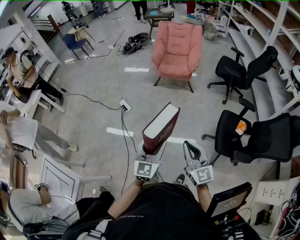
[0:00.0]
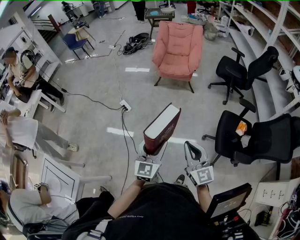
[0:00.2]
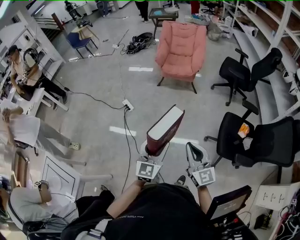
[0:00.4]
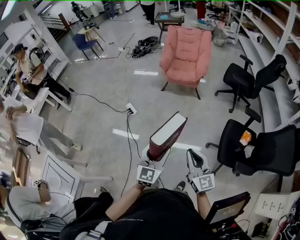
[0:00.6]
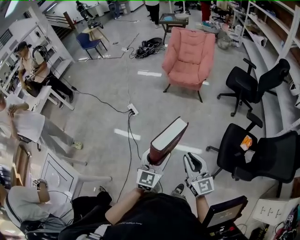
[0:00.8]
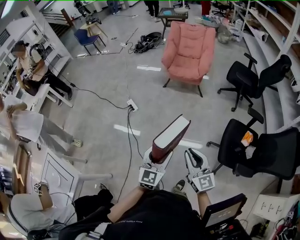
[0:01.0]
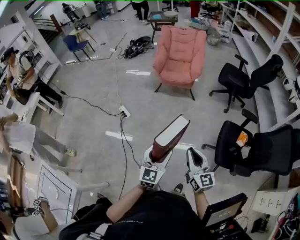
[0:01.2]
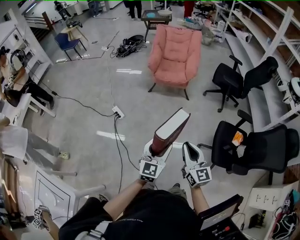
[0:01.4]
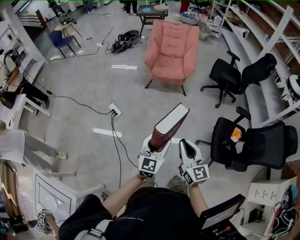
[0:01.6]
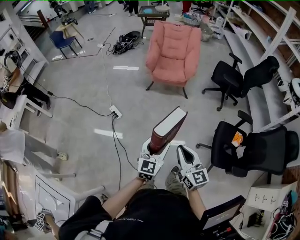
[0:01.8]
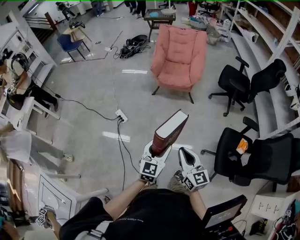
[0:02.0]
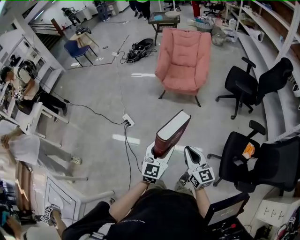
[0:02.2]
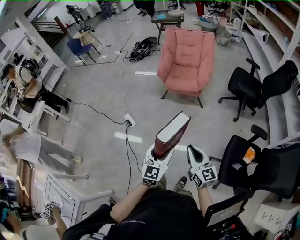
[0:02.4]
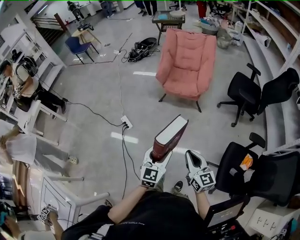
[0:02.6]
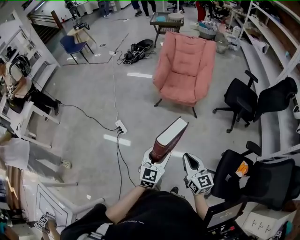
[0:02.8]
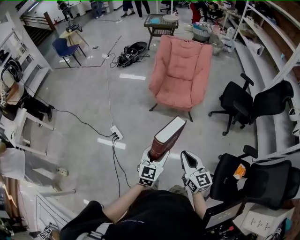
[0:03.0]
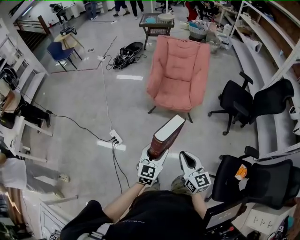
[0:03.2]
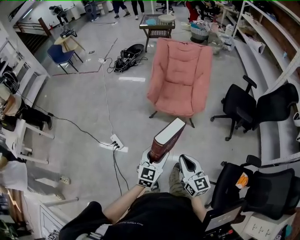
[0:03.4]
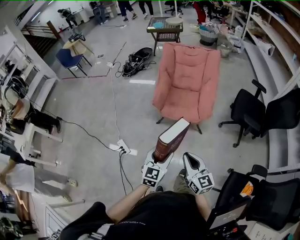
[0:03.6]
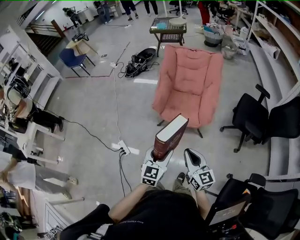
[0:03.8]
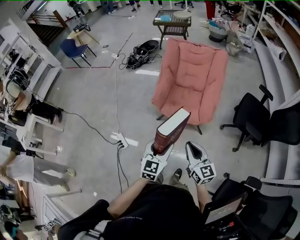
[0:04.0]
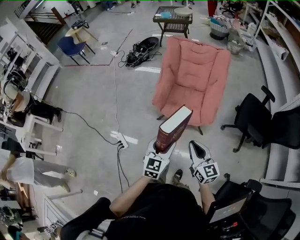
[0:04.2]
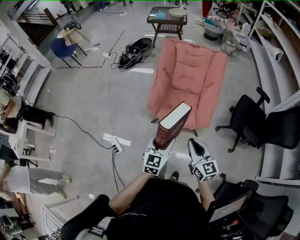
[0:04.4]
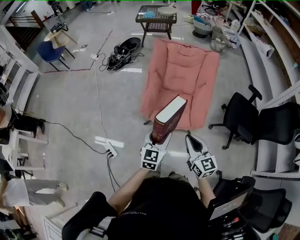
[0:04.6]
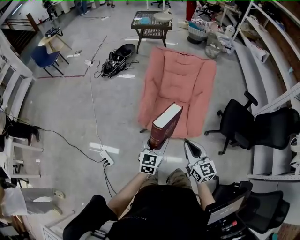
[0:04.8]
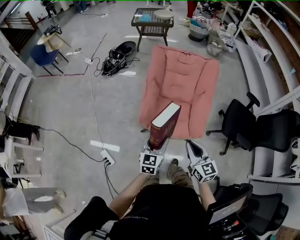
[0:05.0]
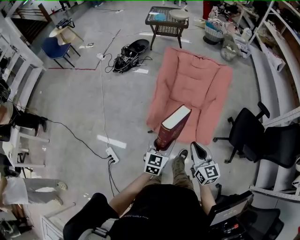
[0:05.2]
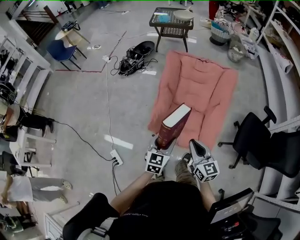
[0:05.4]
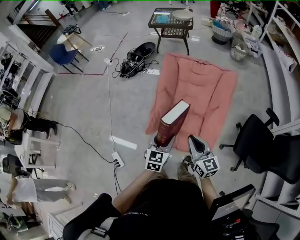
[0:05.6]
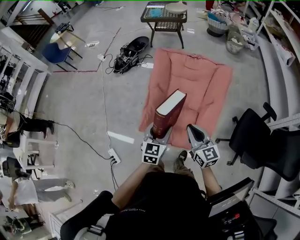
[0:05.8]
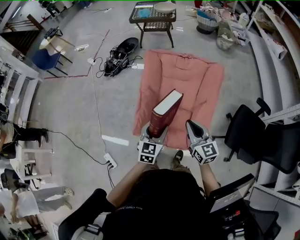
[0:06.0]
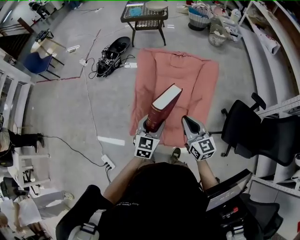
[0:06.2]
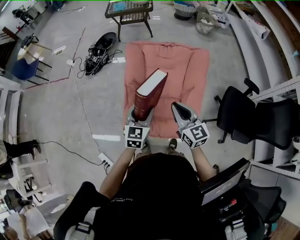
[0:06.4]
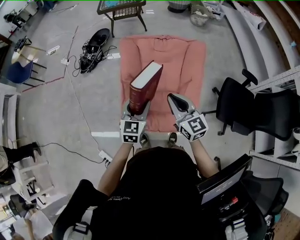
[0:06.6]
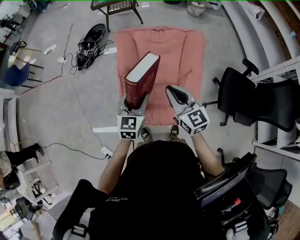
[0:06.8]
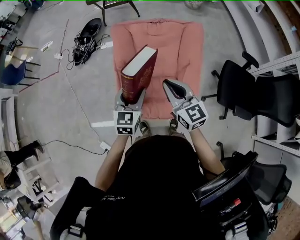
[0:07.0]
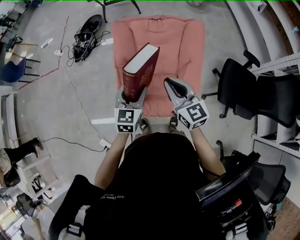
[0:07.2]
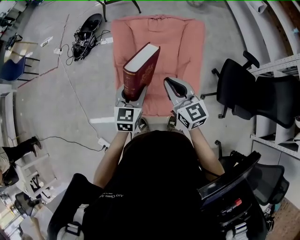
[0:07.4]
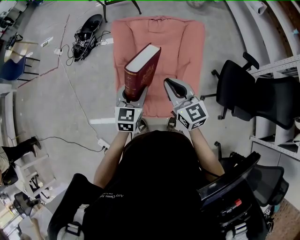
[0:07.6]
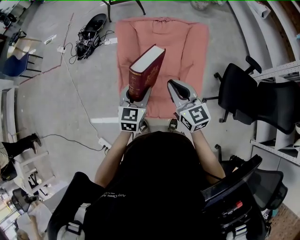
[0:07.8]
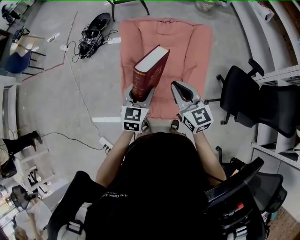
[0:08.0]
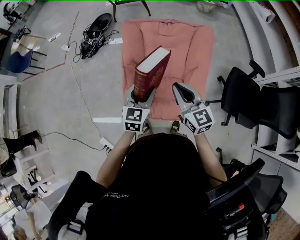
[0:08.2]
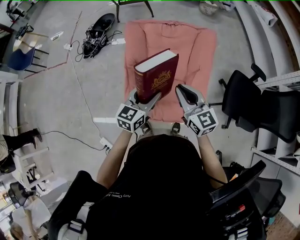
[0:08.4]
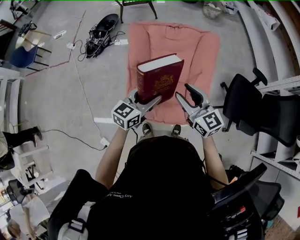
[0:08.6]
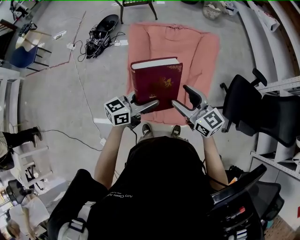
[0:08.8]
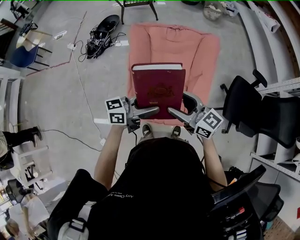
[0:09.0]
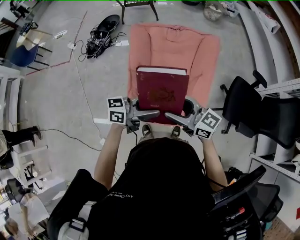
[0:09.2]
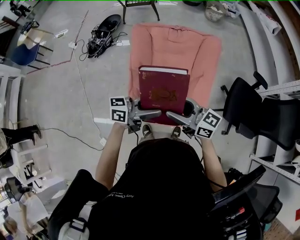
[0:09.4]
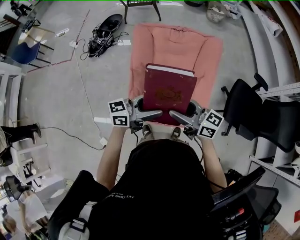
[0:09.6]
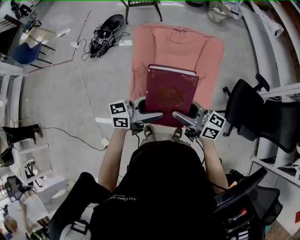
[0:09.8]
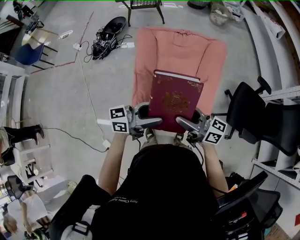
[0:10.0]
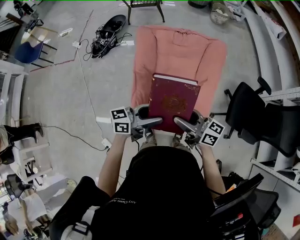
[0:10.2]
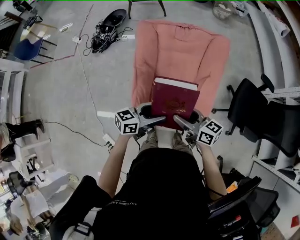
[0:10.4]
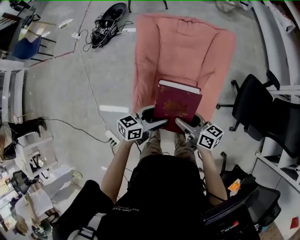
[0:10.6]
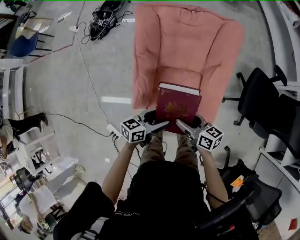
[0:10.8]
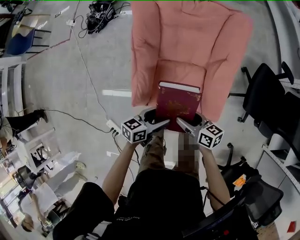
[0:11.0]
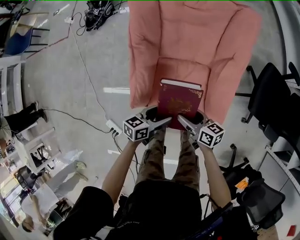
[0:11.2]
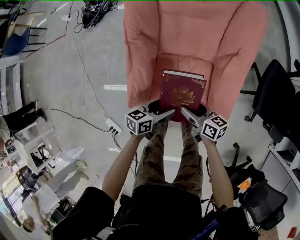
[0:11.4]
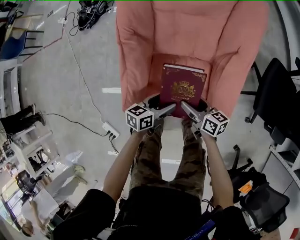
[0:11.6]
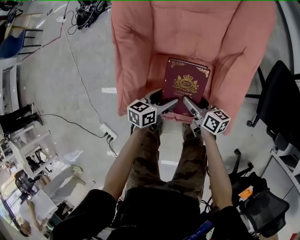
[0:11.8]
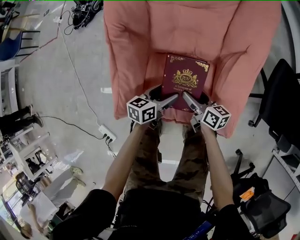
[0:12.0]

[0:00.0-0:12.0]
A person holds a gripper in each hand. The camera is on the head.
0:00.0 to 0:01.6: The two grippers go some 15 cm forward.
0:01.6 to 0:03.0: Both grippers travel together forward, roughly 30 cm.
0:03.0 to 0:04.4: The two grippers go some 40 cm forward.
0:04.4 to 0:06.0: The grippers both shift forward by roughly 35 cm.
0:06.0 to 0:07.6: Both grippers move forward, about 5 cm.
0:07.6 to 0:09.0: The right gripper moves roughly 5 cm, swivels some 30 degrees, and opens up. Meanwhile the left gripper is displaced backward and upward by roughly 10 cm, and turns by roughly 60 degrees.
0:09.0 to 0:10.4: The grippers both shift downward by about 10 cm. The right gripper changes its angle by about 20 degrees.
0:10.4 to 0:12.0: Both grippers travel together downward, roughly 40 cm. The right gripper swivels some 20 degrees. The left gripper changes its angle by about 20 degrees.

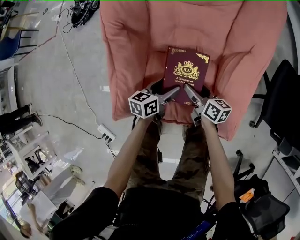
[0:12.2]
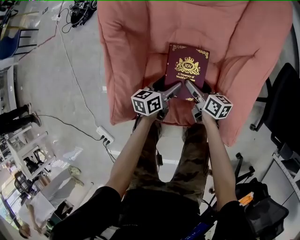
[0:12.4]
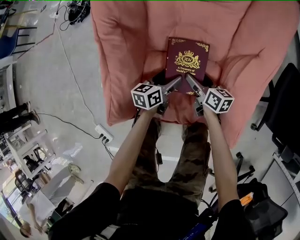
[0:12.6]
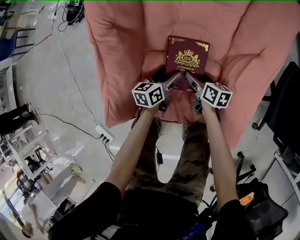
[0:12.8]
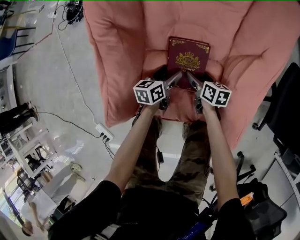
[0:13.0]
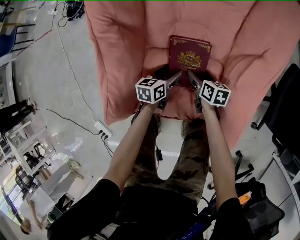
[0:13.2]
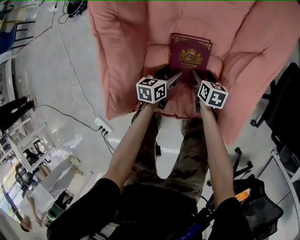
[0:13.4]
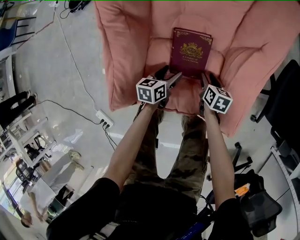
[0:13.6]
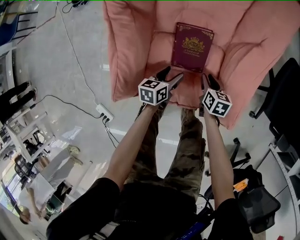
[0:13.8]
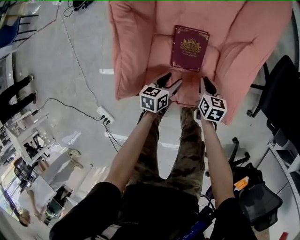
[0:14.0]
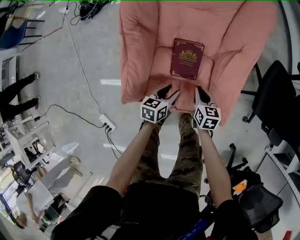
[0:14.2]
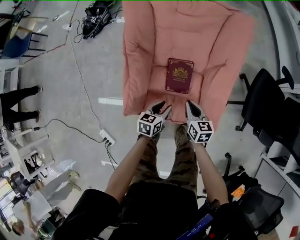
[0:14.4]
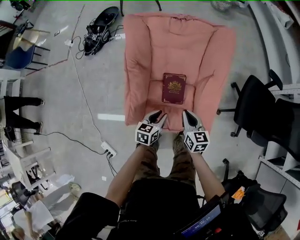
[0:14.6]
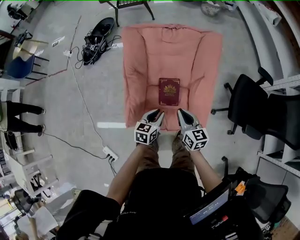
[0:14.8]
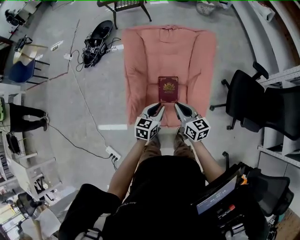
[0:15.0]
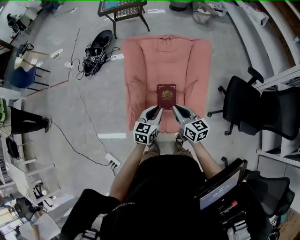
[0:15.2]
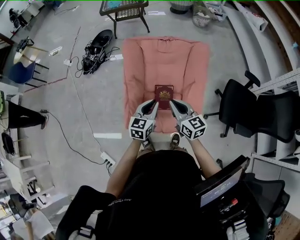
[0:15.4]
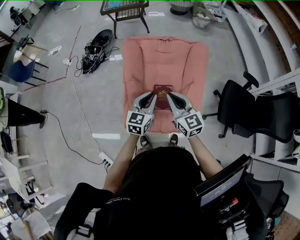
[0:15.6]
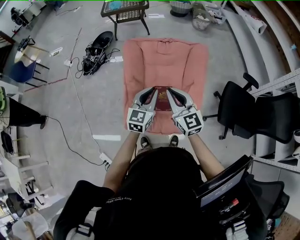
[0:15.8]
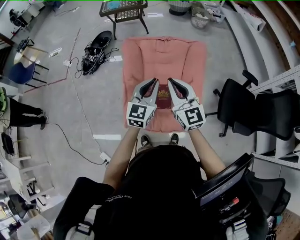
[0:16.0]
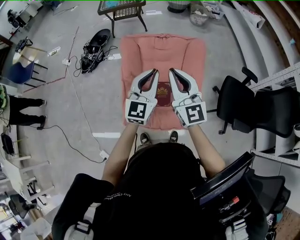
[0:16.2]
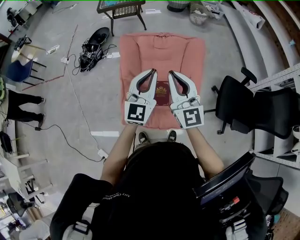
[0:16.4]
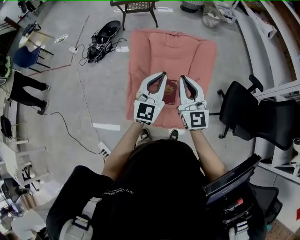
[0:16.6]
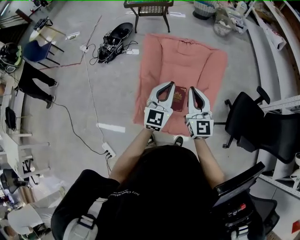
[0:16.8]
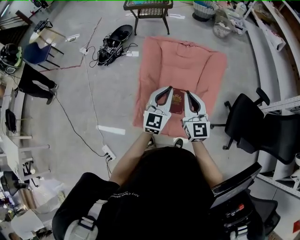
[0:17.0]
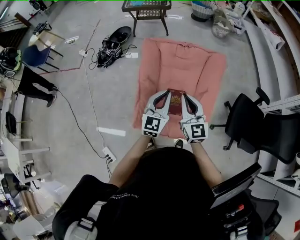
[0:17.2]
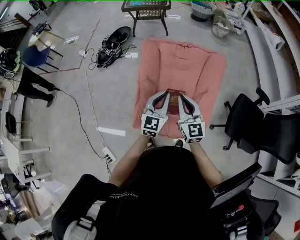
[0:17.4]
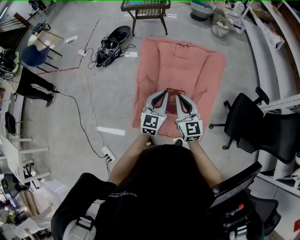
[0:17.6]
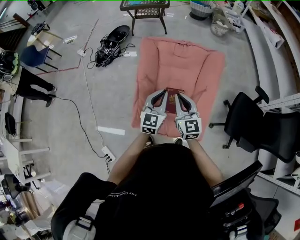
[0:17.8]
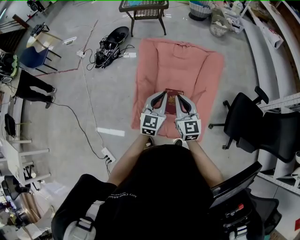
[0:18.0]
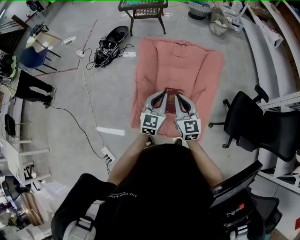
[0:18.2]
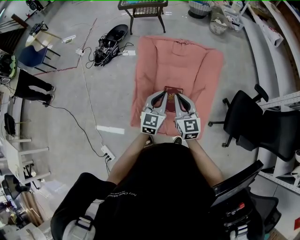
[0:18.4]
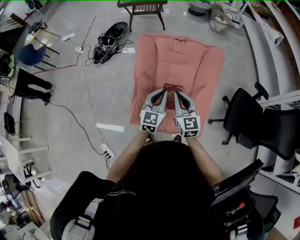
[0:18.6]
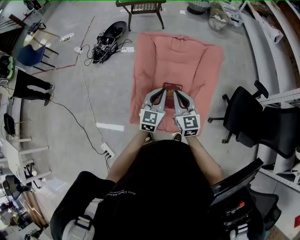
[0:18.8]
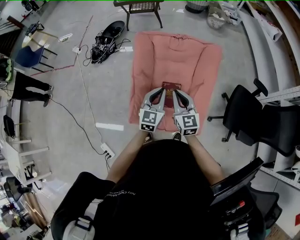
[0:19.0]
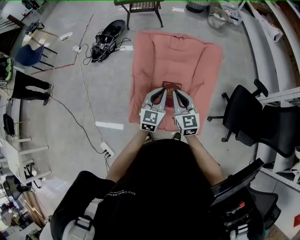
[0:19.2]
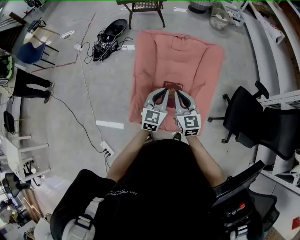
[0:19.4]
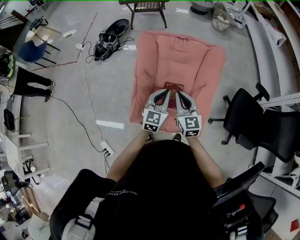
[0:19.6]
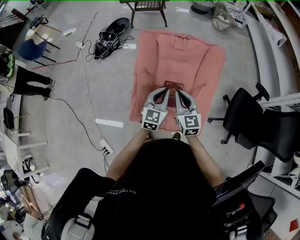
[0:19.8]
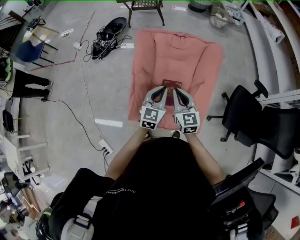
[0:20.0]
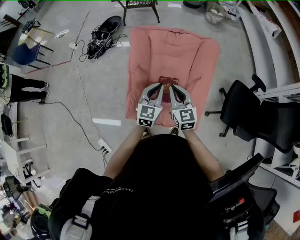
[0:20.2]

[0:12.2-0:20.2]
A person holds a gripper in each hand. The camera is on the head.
0:12.2 to 0:13.8: The right gripper is displaced to the right by about 5 cm, swivels about 30 degrees, and closes its fingers. Meanwhile the left gripper reaches approximately 5 cm forward, then returns.
0:13.8 to 0:15.4: The two grippers go approximately 50 cm upward. The right gripper tips its fingers upward by approximately 40 degrees. Meanwhile the left gripper rotates some 40 degrees, and closes.
0:15.4 to 0:17.0: The grippers both shift upward by approximately 10 cm. The left gripper rotates about 30 degrees. The right gripper turns by some 30 degrees.
0:17.0 to 0:18.6: The grippers both shift downward by approximately 5 cm.
0:18.6 to 0:20.2: There are only small adjustments of the grippers.

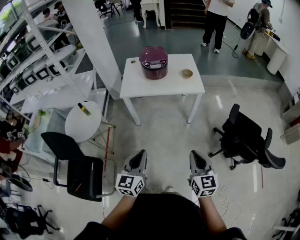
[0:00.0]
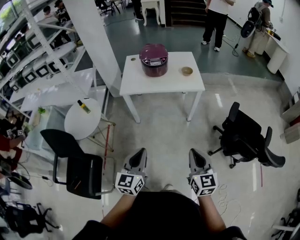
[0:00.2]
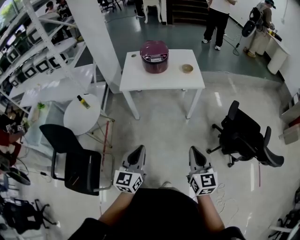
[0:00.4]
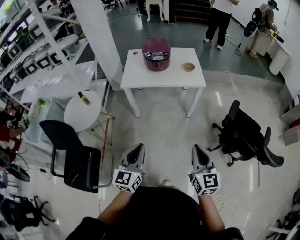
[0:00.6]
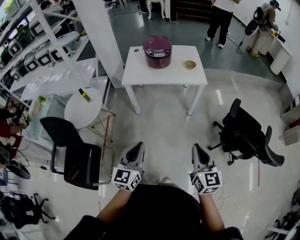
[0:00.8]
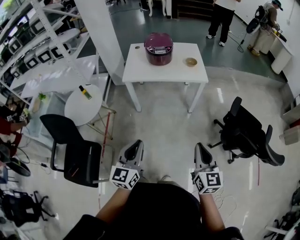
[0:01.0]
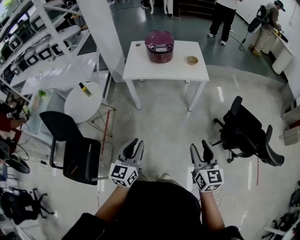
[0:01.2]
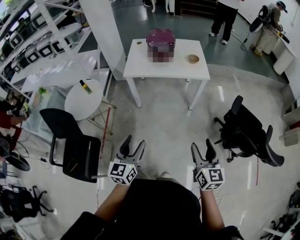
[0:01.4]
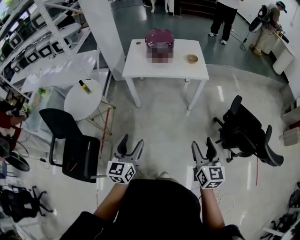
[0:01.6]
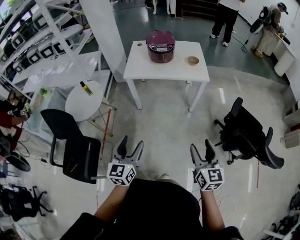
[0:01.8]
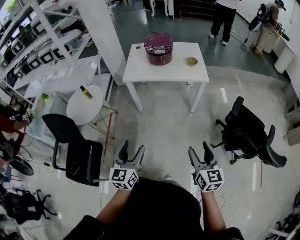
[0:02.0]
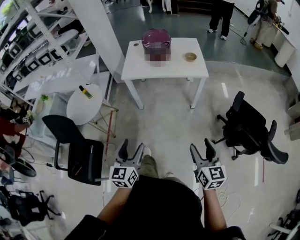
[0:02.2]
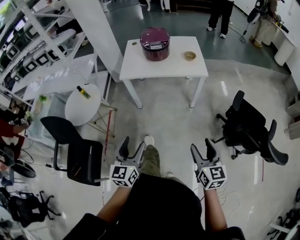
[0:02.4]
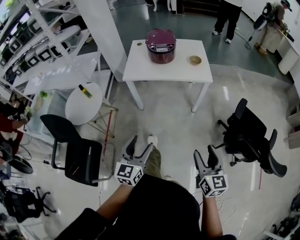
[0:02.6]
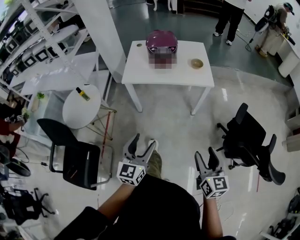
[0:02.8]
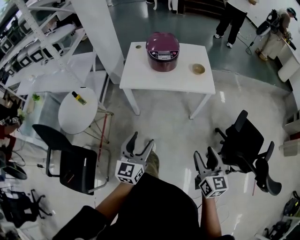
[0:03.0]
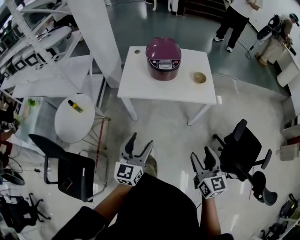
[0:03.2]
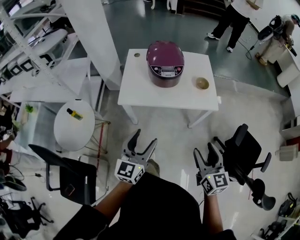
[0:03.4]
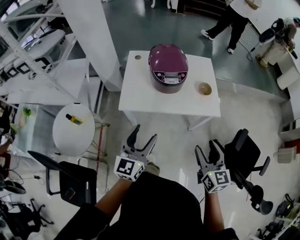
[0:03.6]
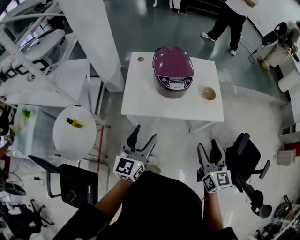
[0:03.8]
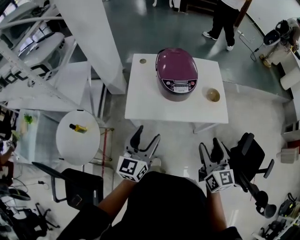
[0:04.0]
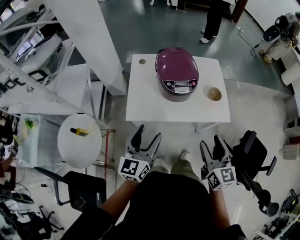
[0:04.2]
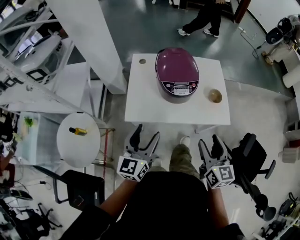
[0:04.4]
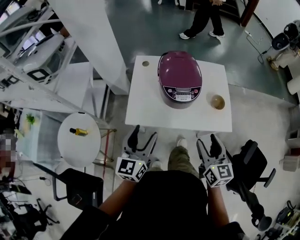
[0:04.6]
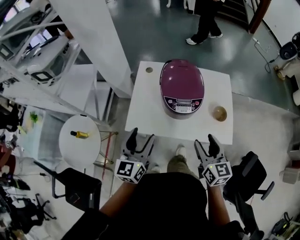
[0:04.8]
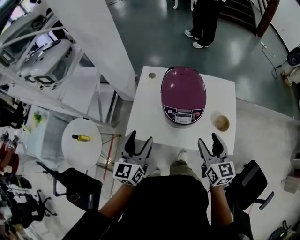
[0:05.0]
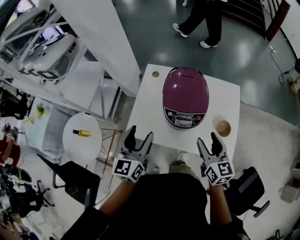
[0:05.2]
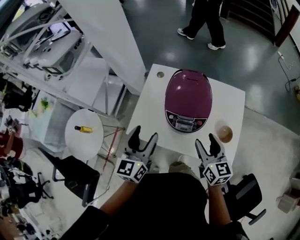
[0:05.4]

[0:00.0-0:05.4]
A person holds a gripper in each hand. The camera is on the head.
0:00.0 to 0:01.4: The left gripper changes place by some 5 cm, and opens its fingers. The right gripper opens its fingers.
0:01.4 to 0:02.8: The two grippers go roughly 10 cm forward.
0:02.8 to 0:04.0: The pair of grippers is taken forward, approximately 40 cm.
0:04.0 to 0:05.4: The grippers both shift forward by approximately 25 cm. The right gripper changes its angle by approximately 20 degrees. Meanwhile the left gripper rotates approximately 20 degrees.
